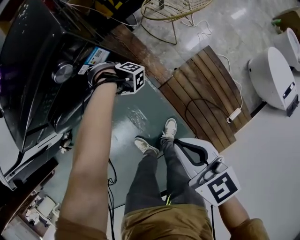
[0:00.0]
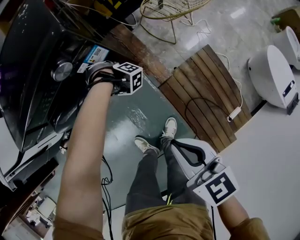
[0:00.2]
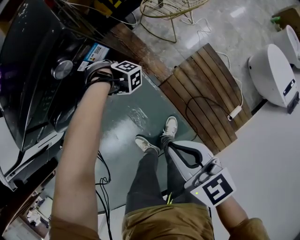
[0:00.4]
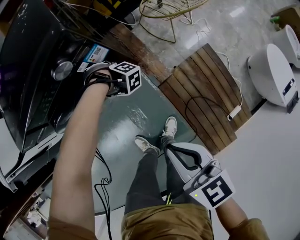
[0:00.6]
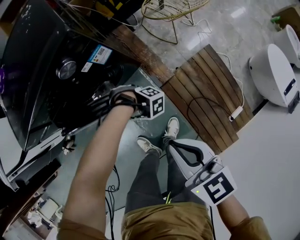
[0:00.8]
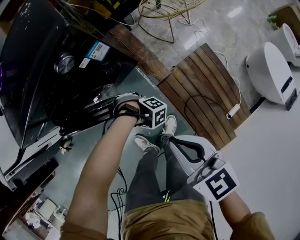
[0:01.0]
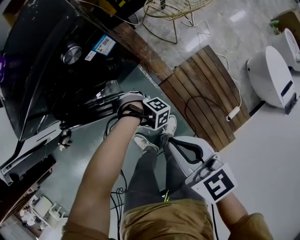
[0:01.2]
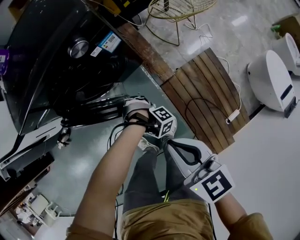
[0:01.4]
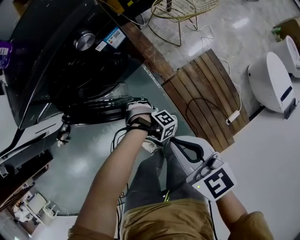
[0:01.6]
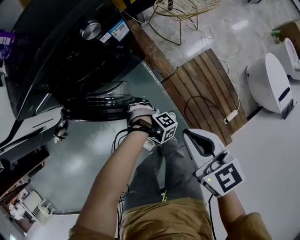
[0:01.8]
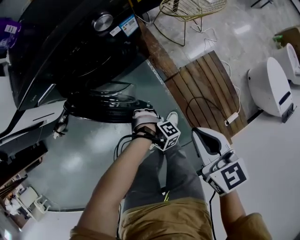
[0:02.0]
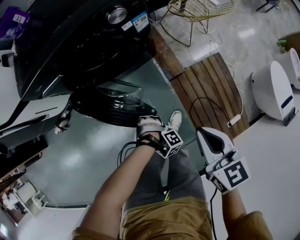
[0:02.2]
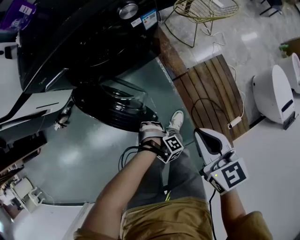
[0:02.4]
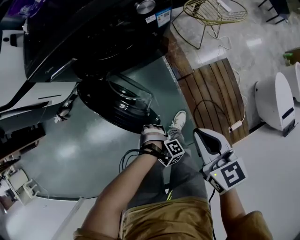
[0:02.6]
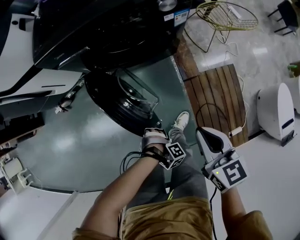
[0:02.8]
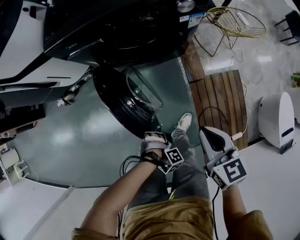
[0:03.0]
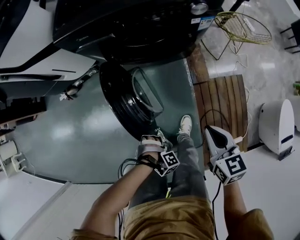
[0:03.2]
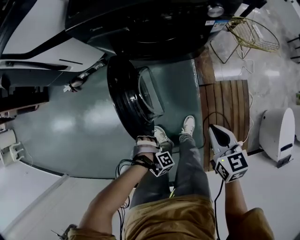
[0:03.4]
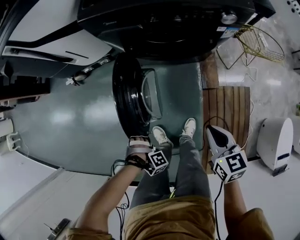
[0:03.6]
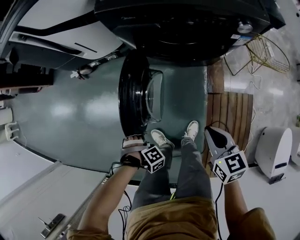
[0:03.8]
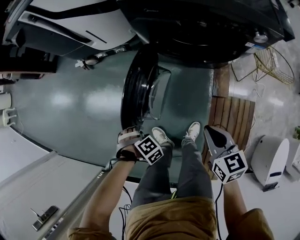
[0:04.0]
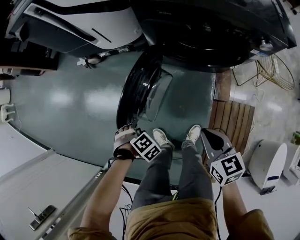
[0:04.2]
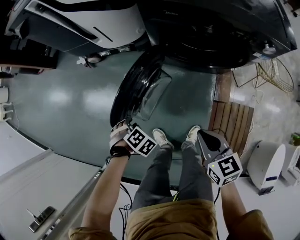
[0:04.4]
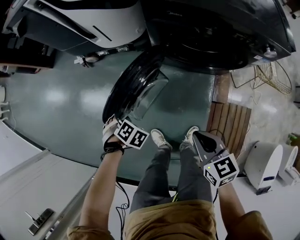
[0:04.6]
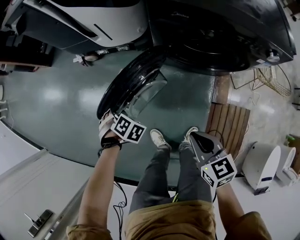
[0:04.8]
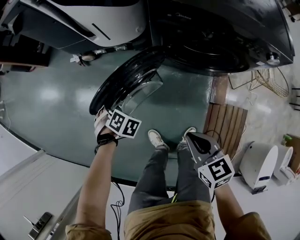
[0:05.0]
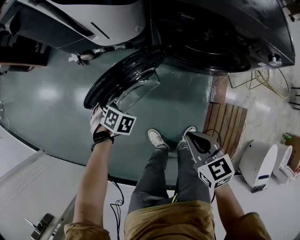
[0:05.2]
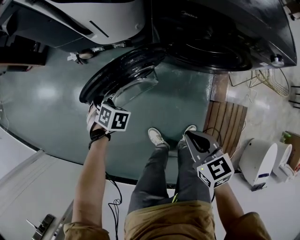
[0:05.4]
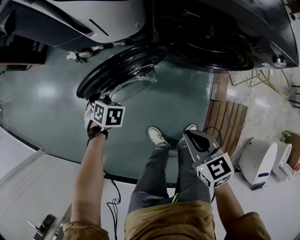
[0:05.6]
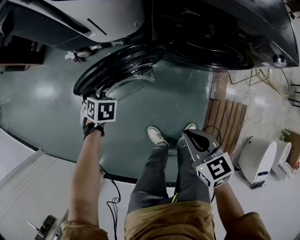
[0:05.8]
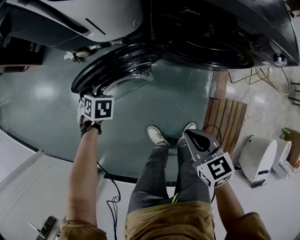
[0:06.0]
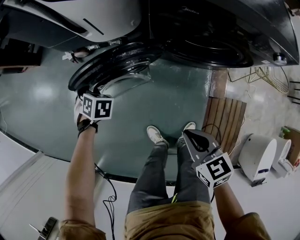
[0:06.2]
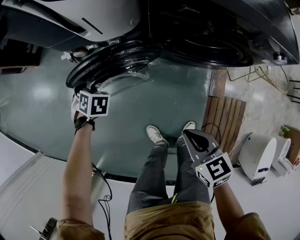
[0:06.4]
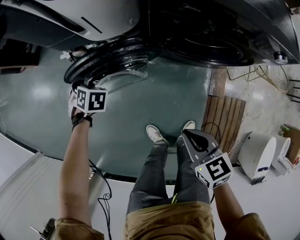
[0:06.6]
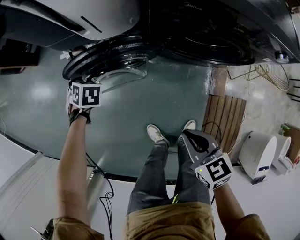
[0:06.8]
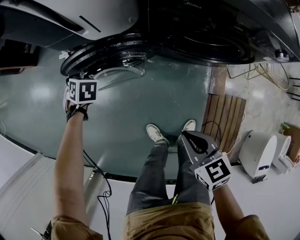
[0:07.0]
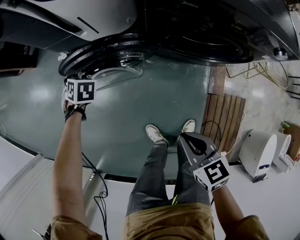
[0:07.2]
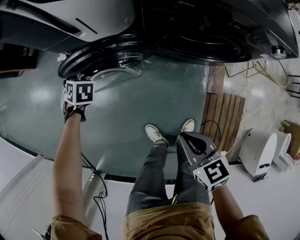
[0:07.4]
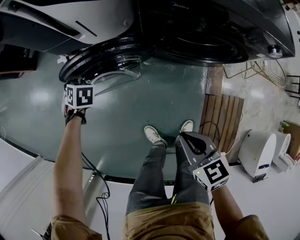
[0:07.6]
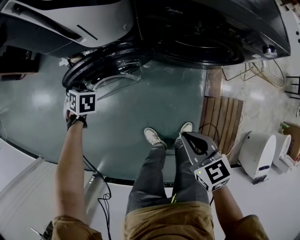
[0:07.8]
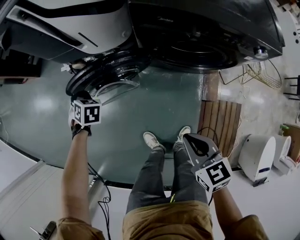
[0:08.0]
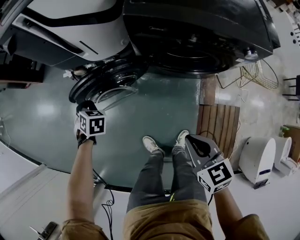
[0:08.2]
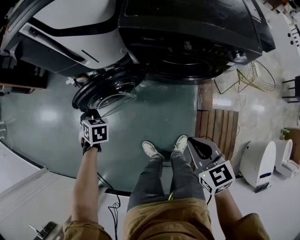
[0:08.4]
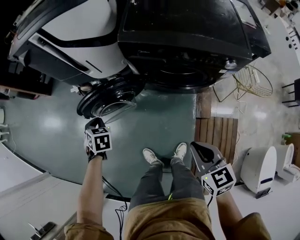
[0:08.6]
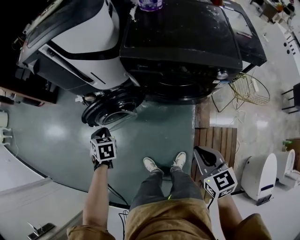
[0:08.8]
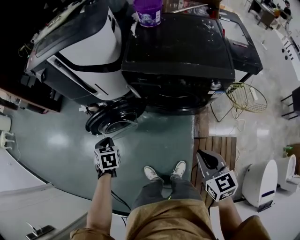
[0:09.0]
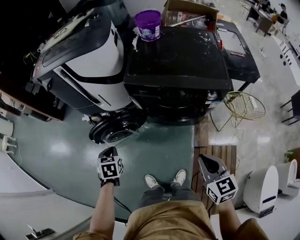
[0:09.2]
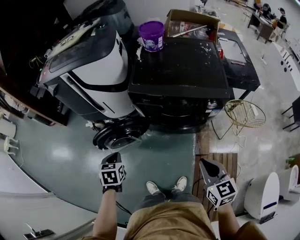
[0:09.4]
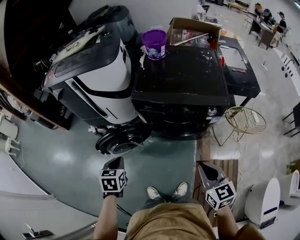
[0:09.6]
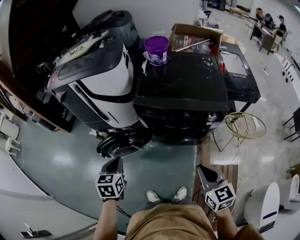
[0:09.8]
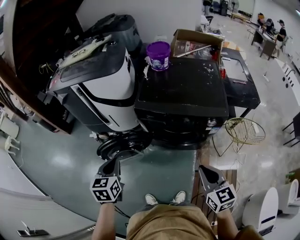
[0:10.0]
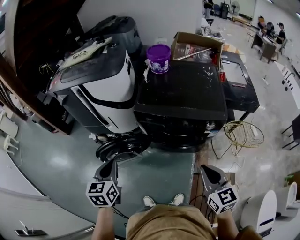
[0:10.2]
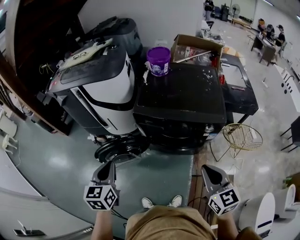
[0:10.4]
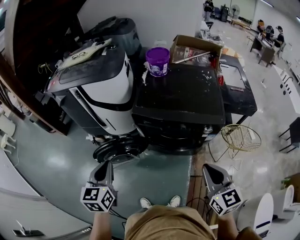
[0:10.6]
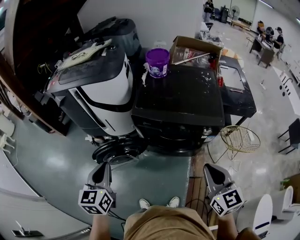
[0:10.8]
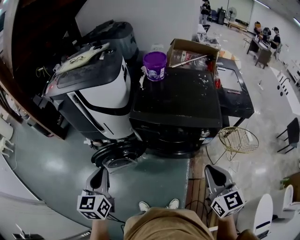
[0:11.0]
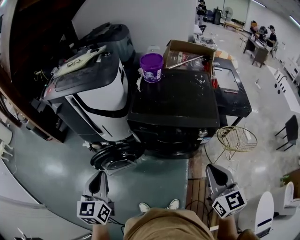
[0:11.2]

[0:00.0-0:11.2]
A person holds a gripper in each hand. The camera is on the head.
0:00.0 to 0:01.6: The left gripper goes about 25 cm to the left and backward, and turns by approximately 20 degrees. The right gripper shifts some 10 cm to the left.
0:01.6 to 0:03.2: The left gripper travels to the left by roughly 30 cm, while the right gripper moves to the left, downward and forward, some 10 cm.
0:03.2 to 0:04.8: The right gripper moves some 25 cm, and changes its angle by about 30 degrees. Meanwhile the left gripper moves some 35 cm, and rotates around the line of its fingers by some 80 degrees, counterclockwise from behind.
0:04.8 to 0:06.4: The right gripper changes place by roughly 5 cm; the left gripper goes roughly 15 cm forward, and swivels roughly 20 degrees.
0:06.4 to 0:08.0: The right gripper moves roughly 5 cm, while the left gripper ends up some 5 cm from where it was.
0:08.0 to 0:09.6: The left gripper heads upward, backward and to the right, covering some 35 cm, and swivels approximately 30 degrees, while the right gripper goes approximately 25 cm upward and to the right.
0:09.6 to 0:11.2: Both grippers move upward, about 15 cm. The left gripper tips its fingers upward by approximately 30 degrees.

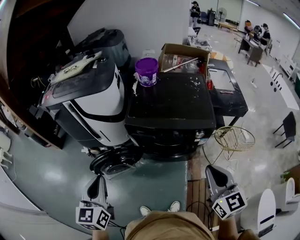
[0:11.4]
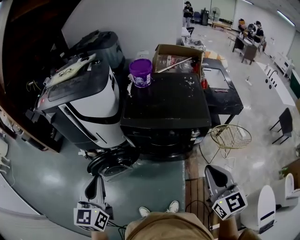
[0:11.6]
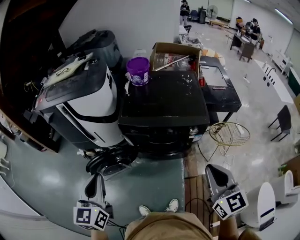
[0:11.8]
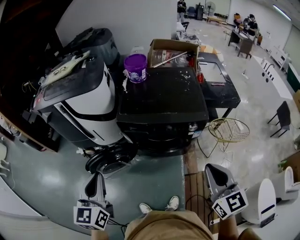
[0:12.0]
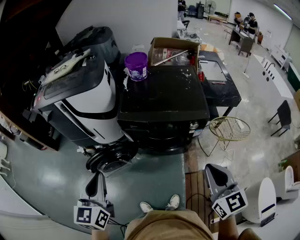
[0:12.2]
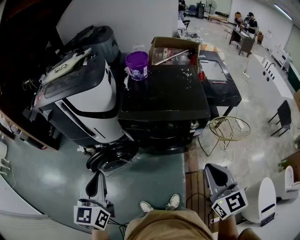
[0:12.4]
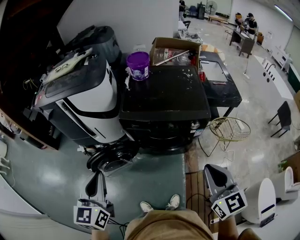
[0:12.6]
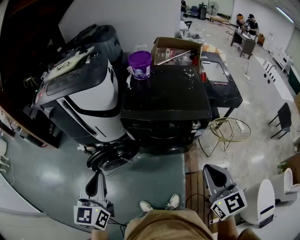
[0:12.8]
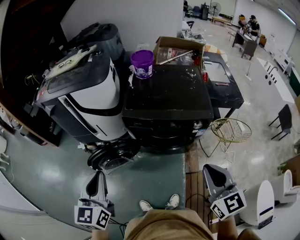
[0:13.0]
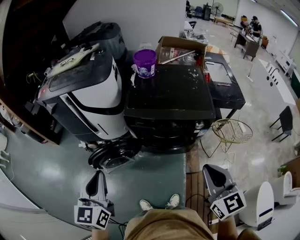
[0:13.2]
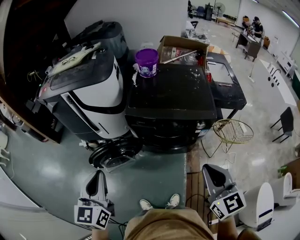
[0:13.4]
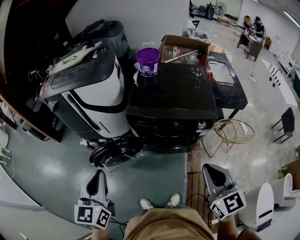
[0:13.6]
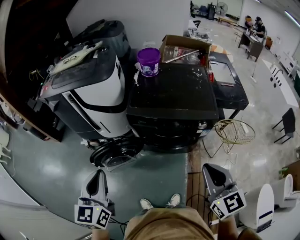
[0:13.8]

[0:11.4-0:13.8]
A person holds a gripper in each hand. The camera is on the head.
0:11.4 to 0:13.8: There are only small adjustments of the grippers.

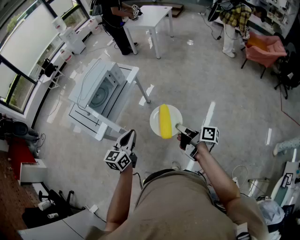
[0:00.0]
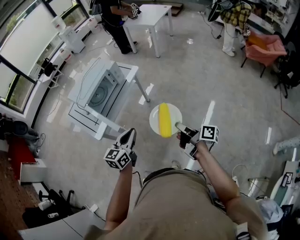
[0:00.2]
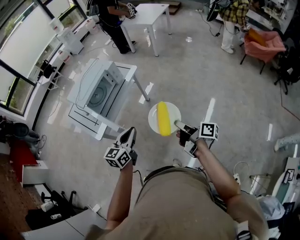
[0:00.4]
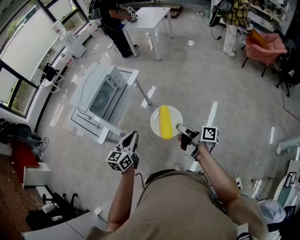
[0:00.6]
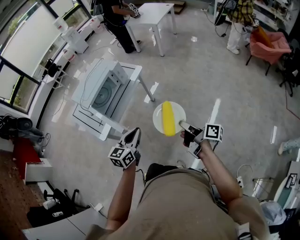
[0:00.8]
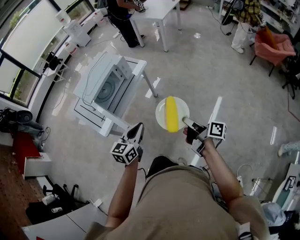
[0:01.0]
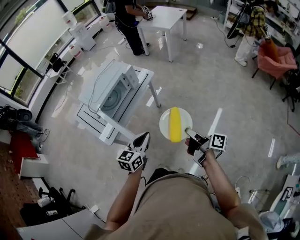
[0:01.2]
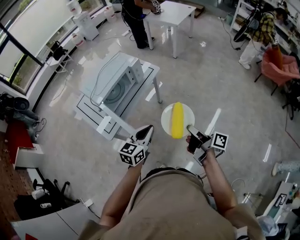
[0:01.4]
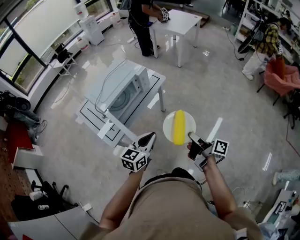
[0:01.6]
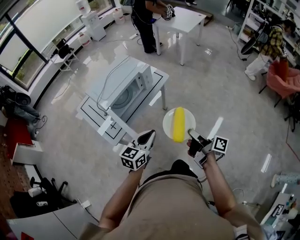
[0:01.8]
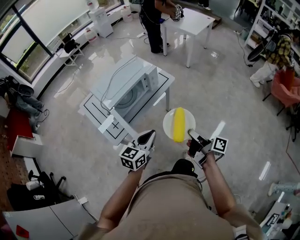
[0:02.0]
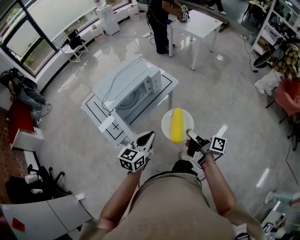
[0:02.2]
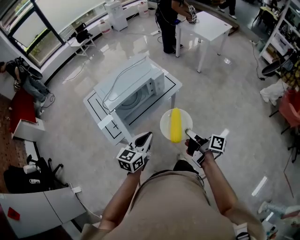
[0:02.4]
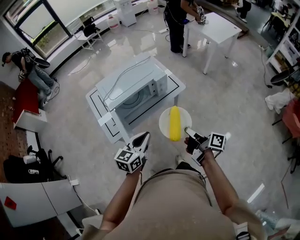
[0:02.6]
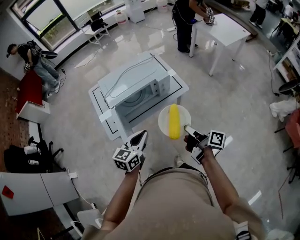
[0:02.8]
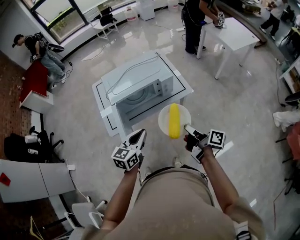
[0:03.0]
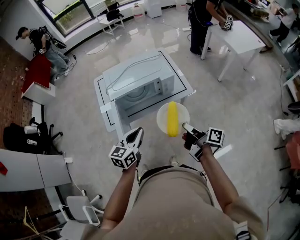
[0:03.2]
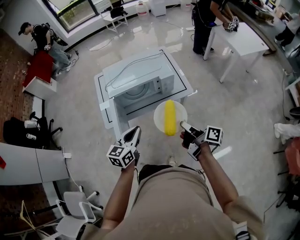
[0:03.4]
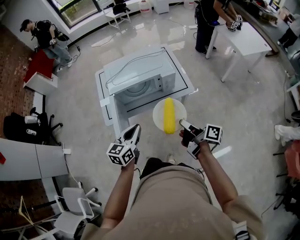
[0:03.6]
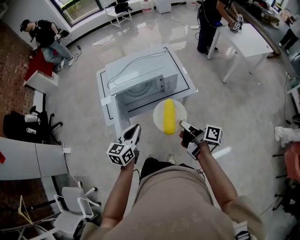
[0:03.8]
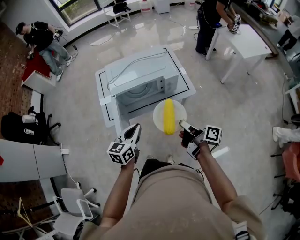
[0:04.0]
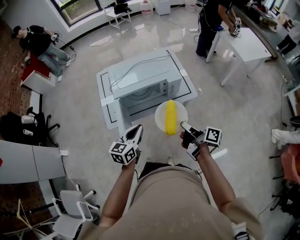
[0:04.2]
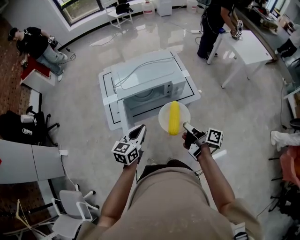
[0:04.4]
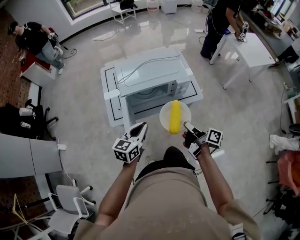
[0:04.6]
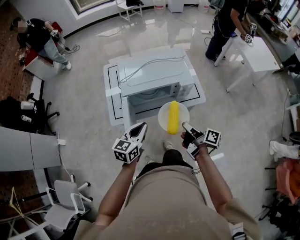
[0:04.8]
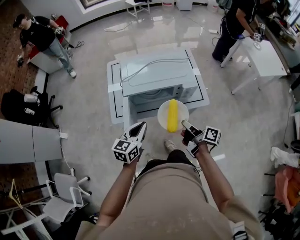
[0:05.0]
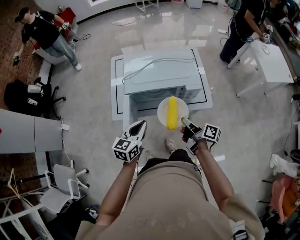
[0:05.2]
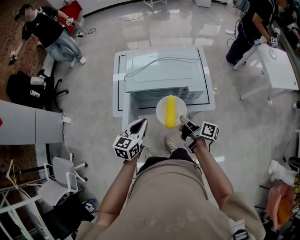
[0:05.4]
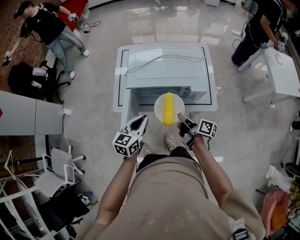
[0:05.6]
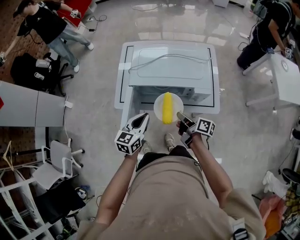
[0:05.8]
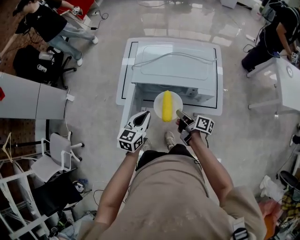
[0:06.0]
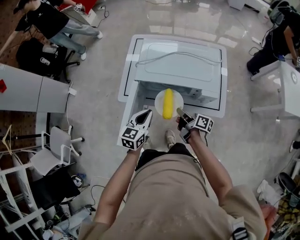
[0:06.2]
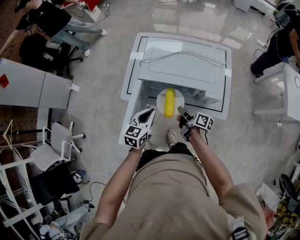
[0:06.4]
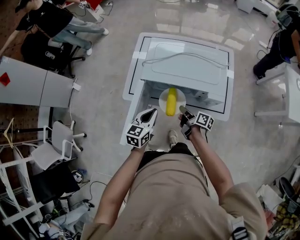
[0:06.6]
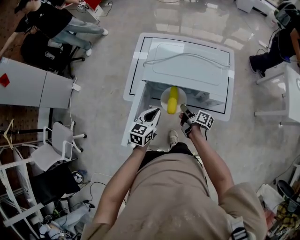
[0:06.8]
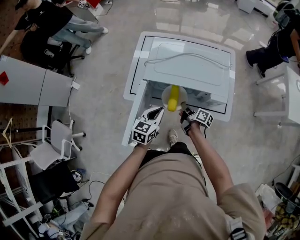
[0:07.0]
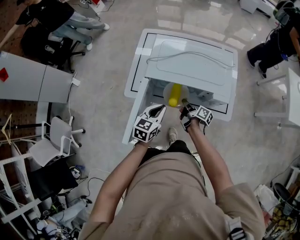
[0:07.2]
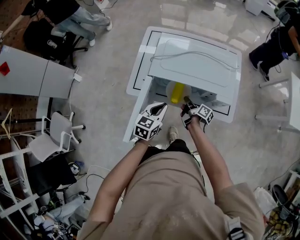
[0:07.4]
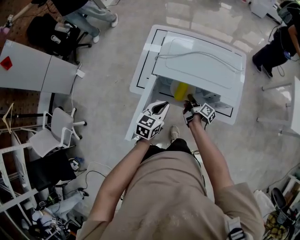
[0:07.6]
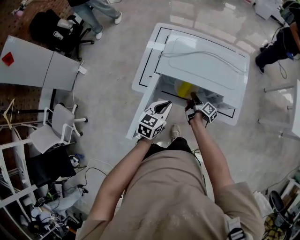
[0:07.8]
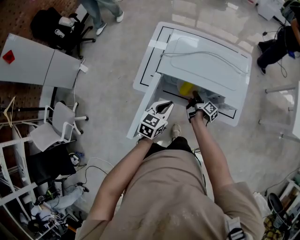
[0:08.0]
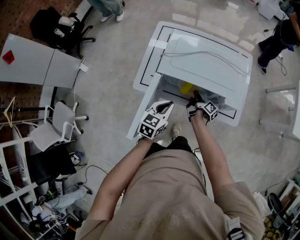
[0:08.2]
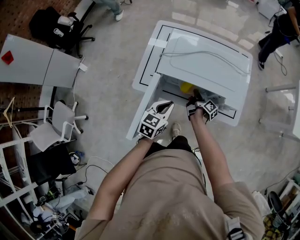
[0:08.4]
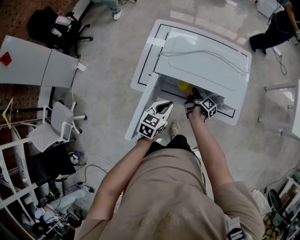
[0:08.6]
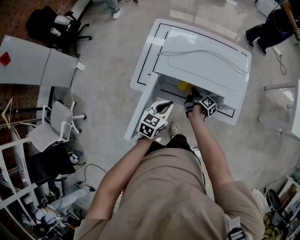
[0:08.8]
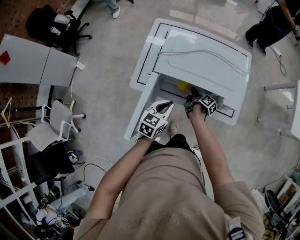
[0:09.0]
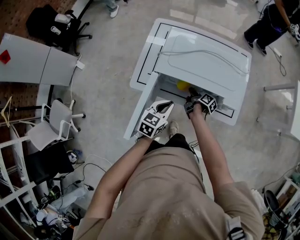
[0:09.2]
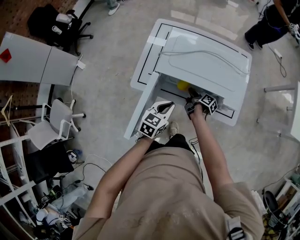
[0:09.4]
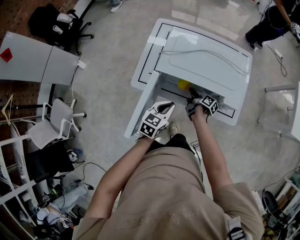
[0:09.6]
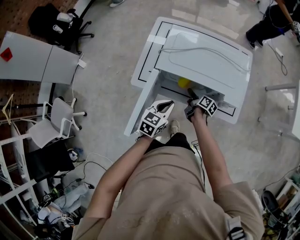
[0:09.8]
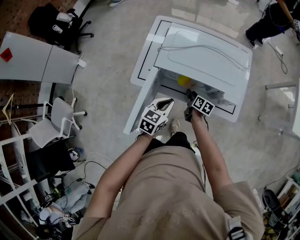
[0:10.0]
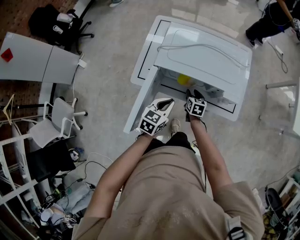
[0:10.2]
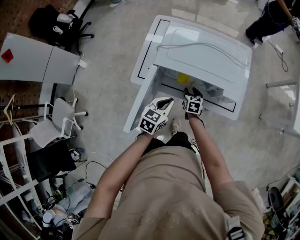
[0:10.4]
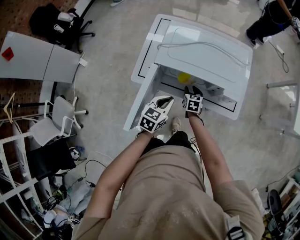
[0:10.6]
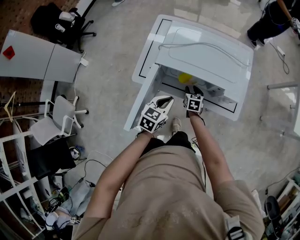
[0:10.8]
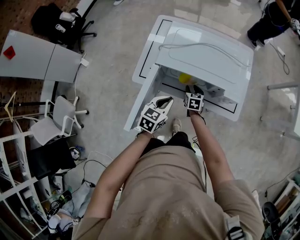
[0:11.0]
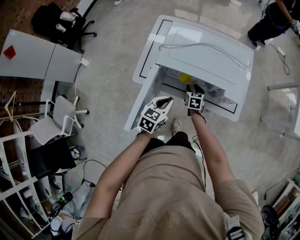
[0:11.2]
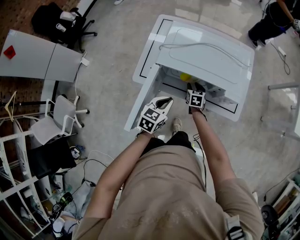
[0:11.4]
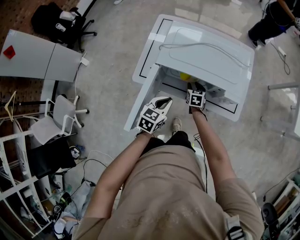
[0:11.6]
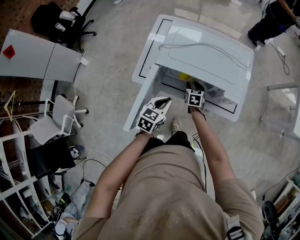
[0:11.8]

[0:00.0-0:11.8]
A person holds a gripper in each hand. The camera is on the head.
0:00.0 to 0:01.4: The right gripper is displaced forward and to the left by approximately 10 cm. Meanwhile the left gripper goes some 10 cm forward.
0:01.4 to 0:03.0: The right gripper moves about 25 cm, and changes its angle by about 30 degrees, while the left gripper moves about 15 cm, and rotates roughly 30 degrees.
0:03.0 to 0:04.4: The right gripper shifts roughly 5 cm forward; the left gripper moves some 5 cm.
0:04.4 to 0:06.0: The right gripper moves approximately 20 cm, and changes its angle by approximately 30 degrees, while the left gripper moves roughly 10 cm, and changes its angle by some 20 degrees.
0:06.0 to 0:07.4: The left gripper changes place by roughly 5 cm, while the right gripper heads downward and forward, covering some 15 cm.
0:07.4 to 0:08.8: The right gripper travels forward by some 5 cm.
0:08.8 to 0:10.4: The right gripper twists about 70 degrees counterclockwise, seen from behind, and opens its fingers.
0:10.4 to 0:11.8: There are only small adjustments of the grippers.
